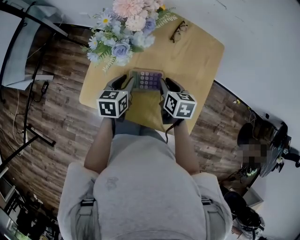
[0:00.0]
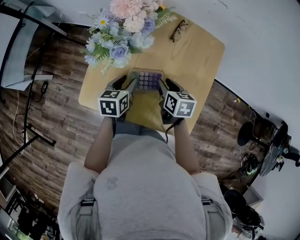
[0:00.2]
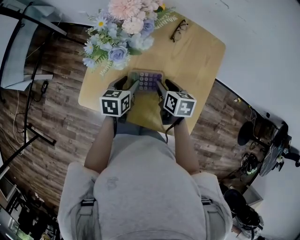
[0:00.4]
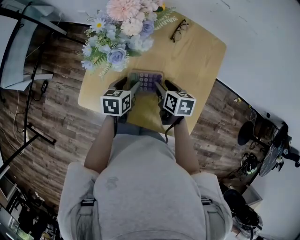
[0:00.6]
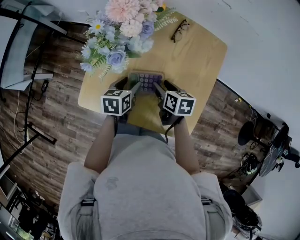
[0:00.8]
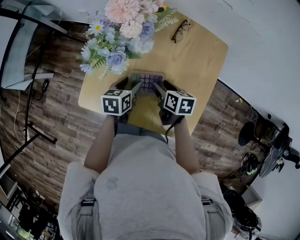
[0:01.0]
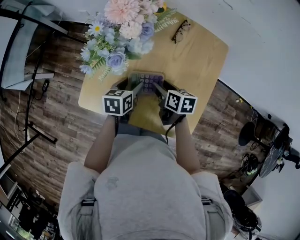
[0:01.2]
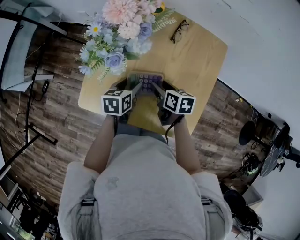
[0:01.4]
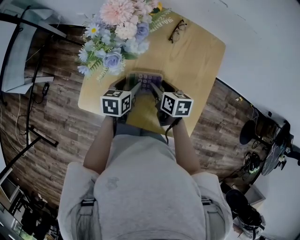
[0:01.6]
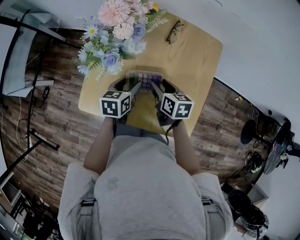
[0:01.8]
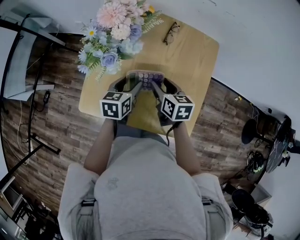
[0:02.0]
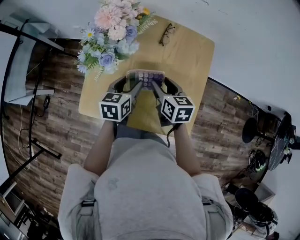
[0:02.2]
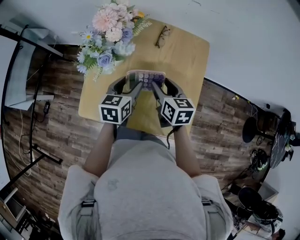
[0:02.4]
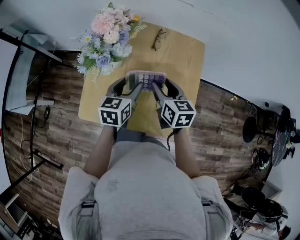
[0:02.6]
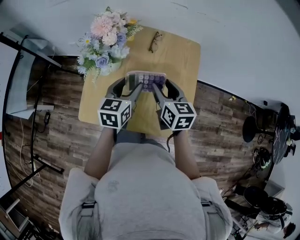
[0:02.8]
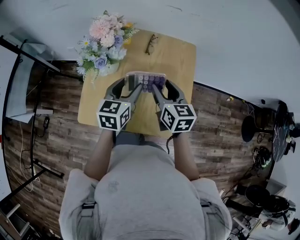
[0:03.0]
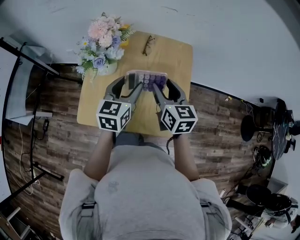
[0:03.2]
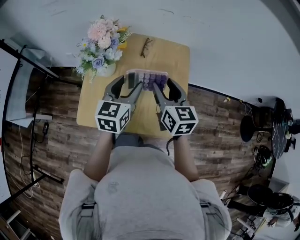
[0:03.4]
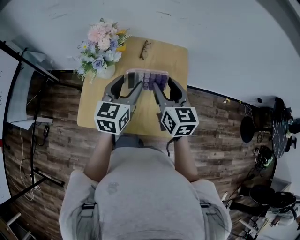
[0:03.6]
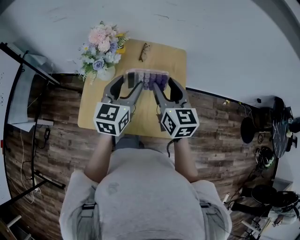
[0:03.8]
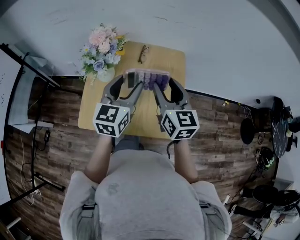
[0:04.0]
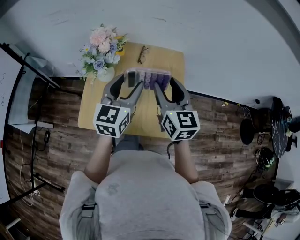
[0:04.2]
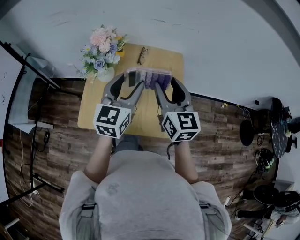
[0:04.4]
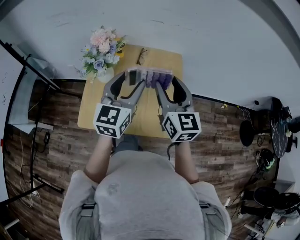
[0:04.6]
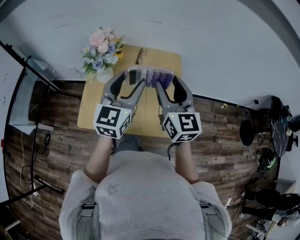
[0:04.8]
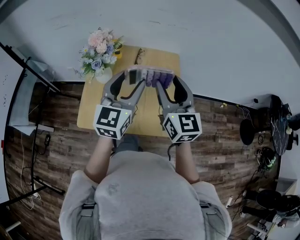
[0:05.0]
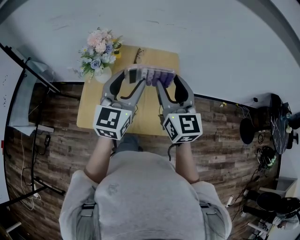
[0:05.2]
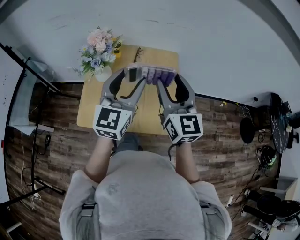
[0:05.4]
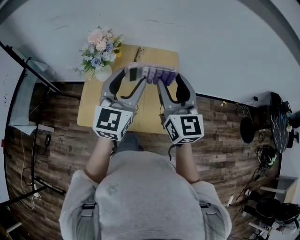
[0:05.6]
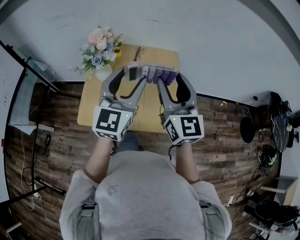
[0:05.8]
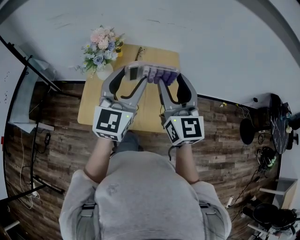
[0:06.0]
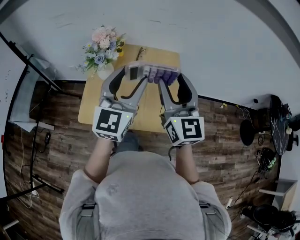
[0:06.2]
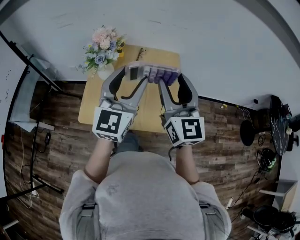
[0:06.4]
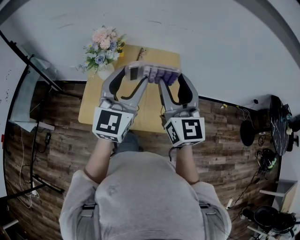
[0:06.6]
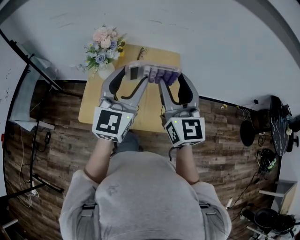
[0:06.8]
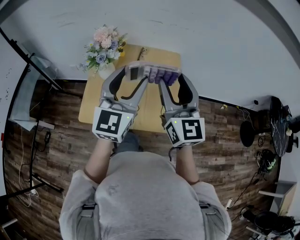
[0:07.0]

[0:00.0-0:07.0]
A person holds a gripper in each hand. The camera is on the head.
0.0 to 1.4 s: The right gripper opens its fingers. The left gripper opens.
1.4 to 2.8 s: The grippers both shift upward by some 15 cm. The left gripper changes its angle by roughly 30 degrees; the right gripper changes its angle by about 30 degrees.
2.8 to 4.2 s: The two grippers go some 15 cm upward. The left gripper turns by some 20 degrees; the right gripper changes its angle by about 20 degrees.
4.2 to 5.6 s: The right gripper moves upward and backward, approximately 10 cm, while the left gripper moves upward, some 5 cm.
5.6 to 7.0 s: The grippers stay close to where they were, moving slightly.

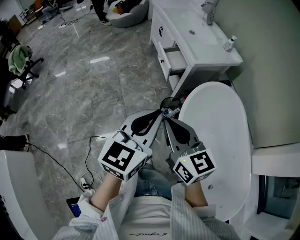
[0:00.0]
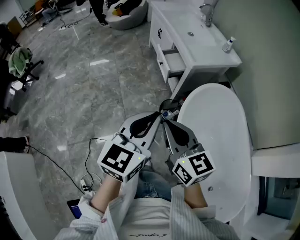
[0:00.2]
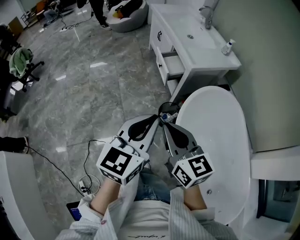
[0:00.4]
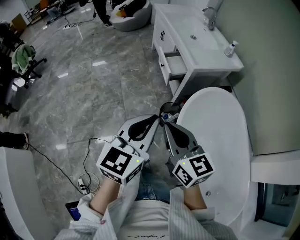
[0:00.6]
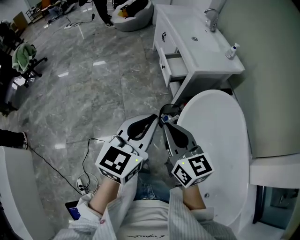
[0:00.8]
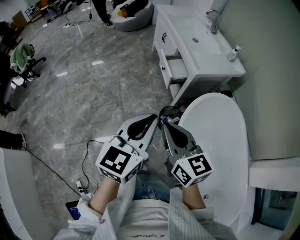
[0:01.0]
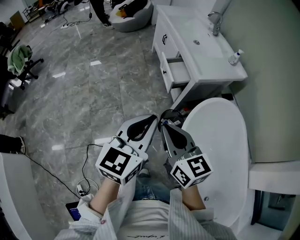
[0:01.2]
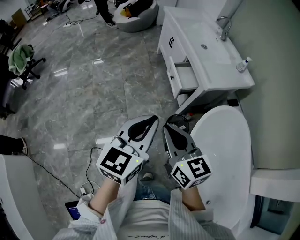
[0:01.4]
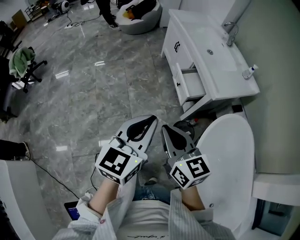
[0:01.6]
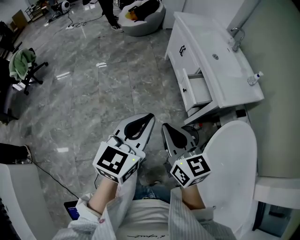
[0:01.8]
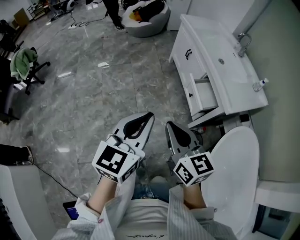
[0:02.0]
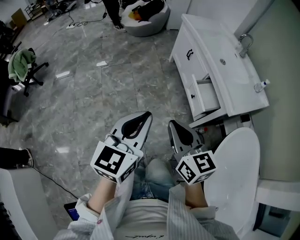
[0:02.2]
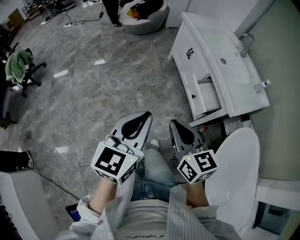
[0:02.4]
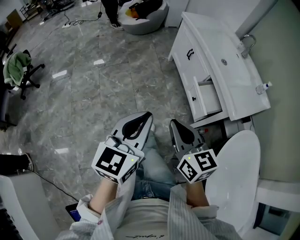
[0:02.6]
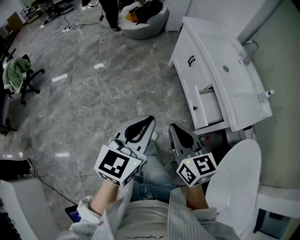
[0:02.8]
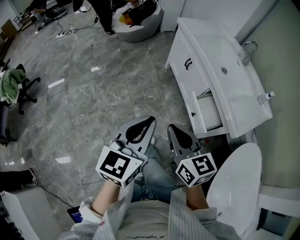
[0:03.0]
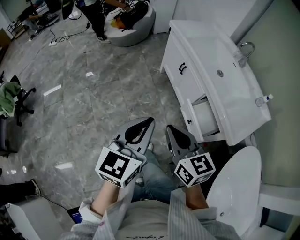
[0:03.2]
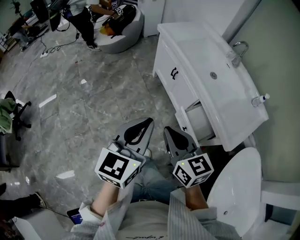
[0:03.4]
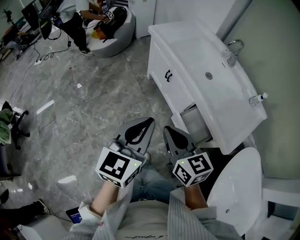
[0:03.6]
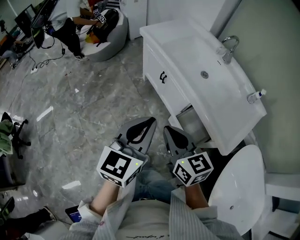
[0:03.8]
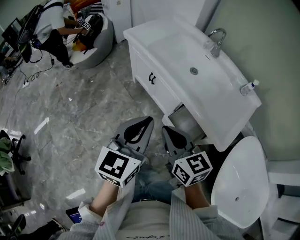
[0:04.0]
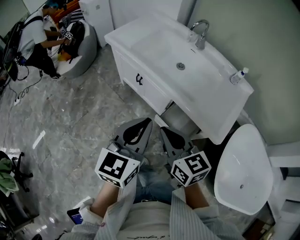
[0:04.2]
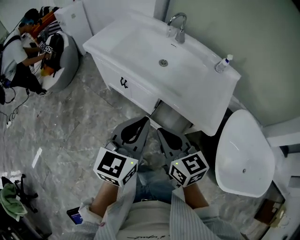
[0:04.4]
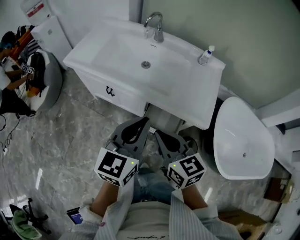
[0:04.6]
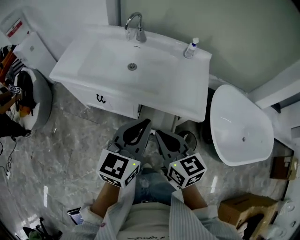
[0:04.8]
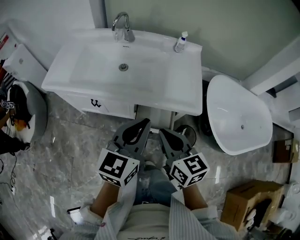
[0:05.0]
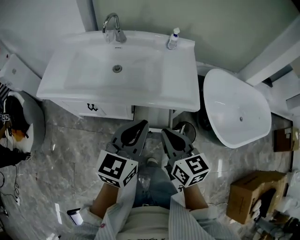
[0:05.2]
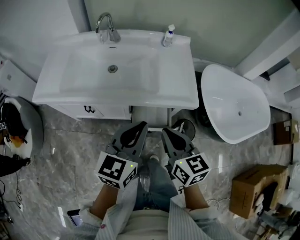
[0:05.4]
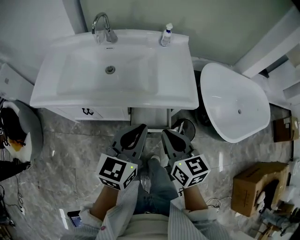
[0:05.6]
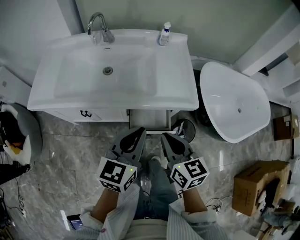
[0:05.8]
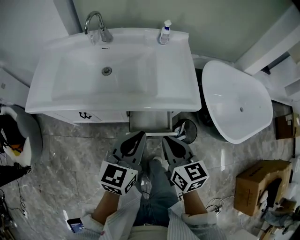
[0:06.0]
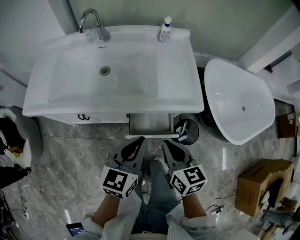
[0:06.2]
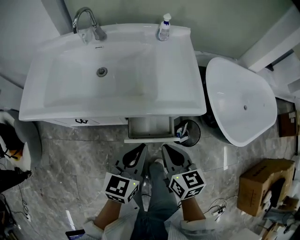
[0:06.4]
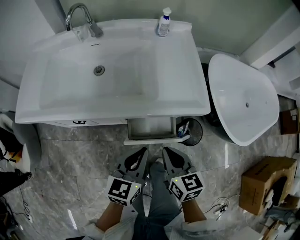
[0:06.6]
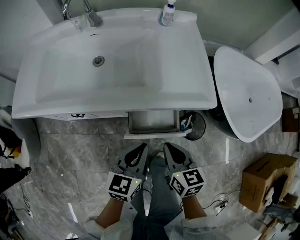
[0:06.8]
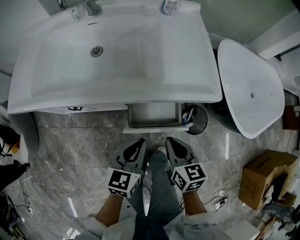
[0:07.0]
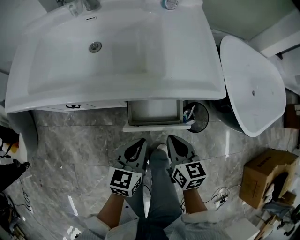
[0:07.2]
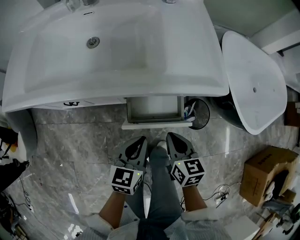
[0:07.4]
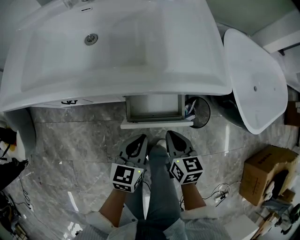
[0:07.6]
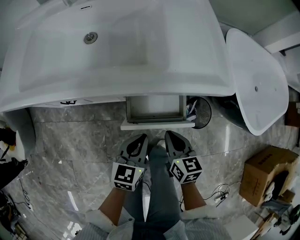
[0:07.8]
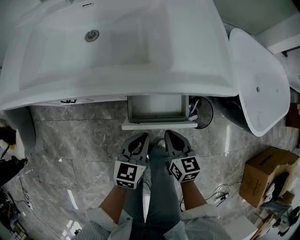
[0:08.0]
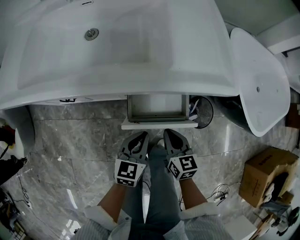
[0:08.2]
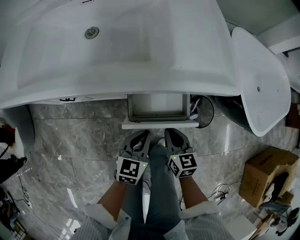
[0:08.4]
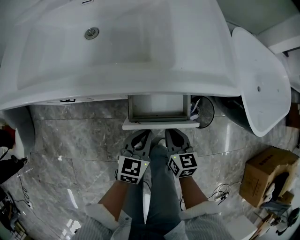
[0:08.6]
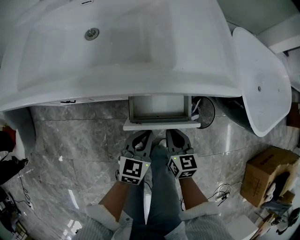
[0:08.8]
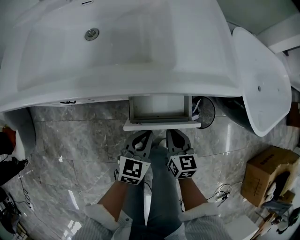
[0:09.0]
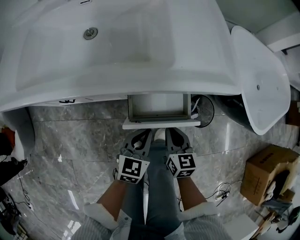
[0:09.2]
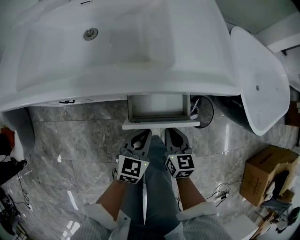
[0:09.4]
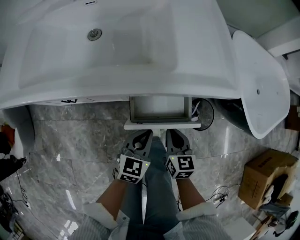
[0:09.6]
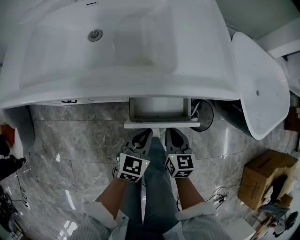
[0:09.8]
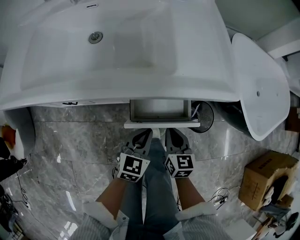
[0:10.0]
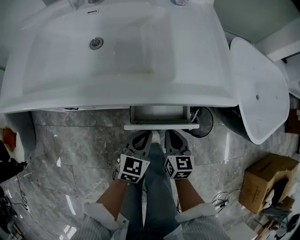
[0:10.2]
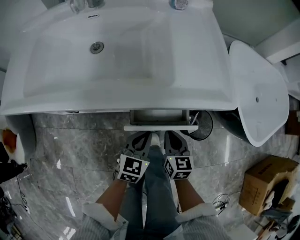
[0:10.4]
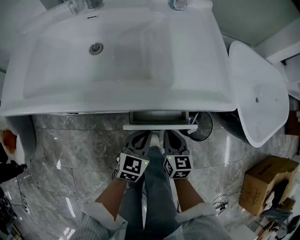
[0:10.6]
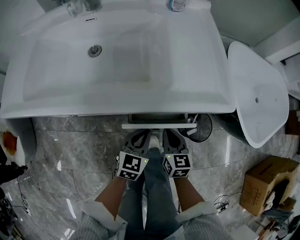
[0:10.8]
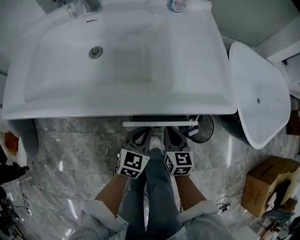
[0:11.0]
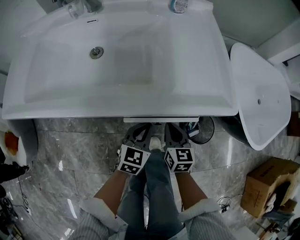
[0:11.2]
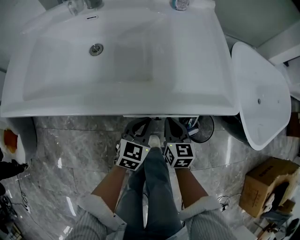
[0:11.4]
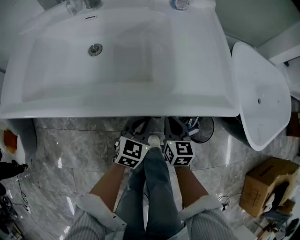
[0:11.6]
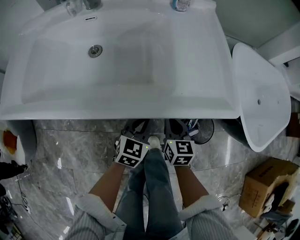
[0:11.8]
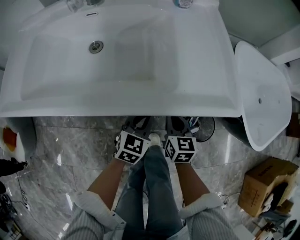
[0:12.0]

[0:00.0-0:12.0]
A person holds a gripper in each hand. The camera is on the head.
0.0 to 1.6 s: The grippers both shift forward and to the left by some 20 cm.
1.6 to 3.0 s: The left gripper goes approximately 30 cm forward and to the left, while the right gripper goes roughly 25 cm forward.
3.0 to 4.4 s: The left gripper shifts by some 30 cm, and swivels about 40 degrees. The right gripper changes place by about 25 cm, and rotates approximately 30 degrees.
4.4 to 6.0 s: The right gripper moves roughly 10 cm, and swivels about 40 degrees. The left gripper is displaced downward by approximately 10 cm, and swivels about 40 degrees.
6.0 to 7.6 s: Both grippers travel together downward, roughly 25 cm.
7.6 to 9.0 s: The two grippers go about 5 cm downward.
9.0 to 10.4 s: The grippers stay close to where they were, moving slightly.
10.4 to 12.0 s: Both grippers travel together forward, roughly 10 cm.

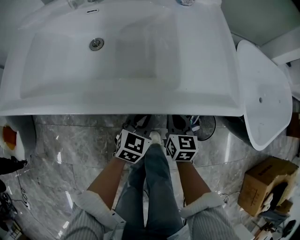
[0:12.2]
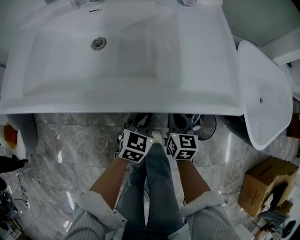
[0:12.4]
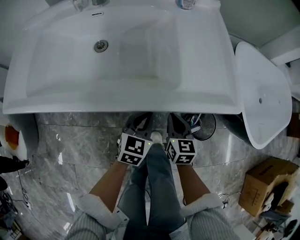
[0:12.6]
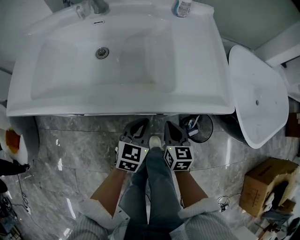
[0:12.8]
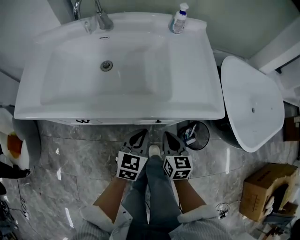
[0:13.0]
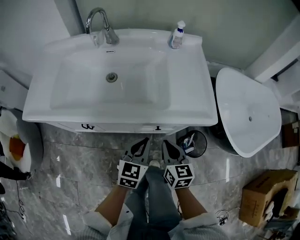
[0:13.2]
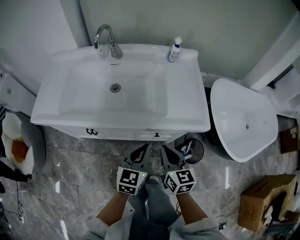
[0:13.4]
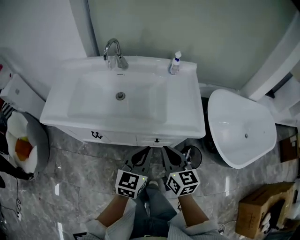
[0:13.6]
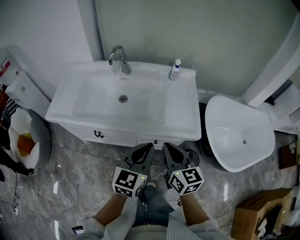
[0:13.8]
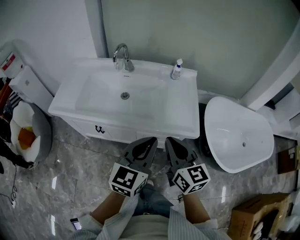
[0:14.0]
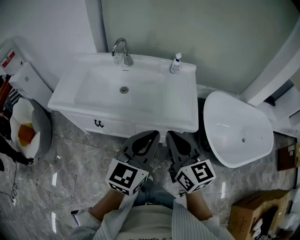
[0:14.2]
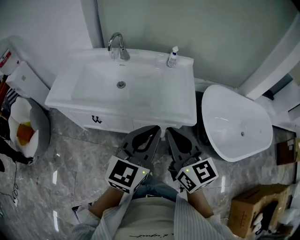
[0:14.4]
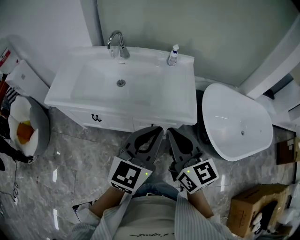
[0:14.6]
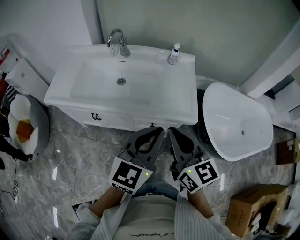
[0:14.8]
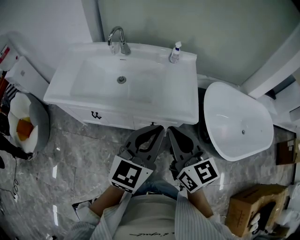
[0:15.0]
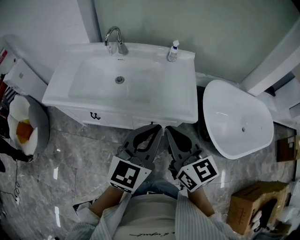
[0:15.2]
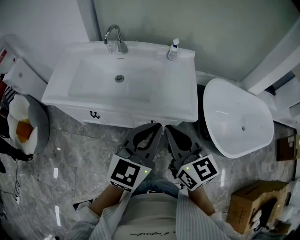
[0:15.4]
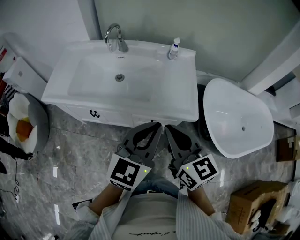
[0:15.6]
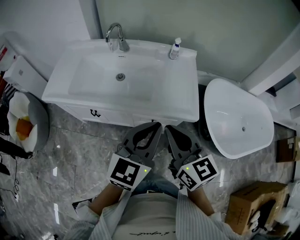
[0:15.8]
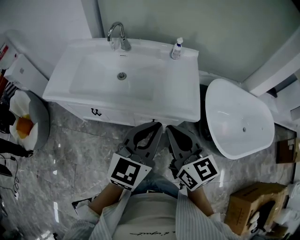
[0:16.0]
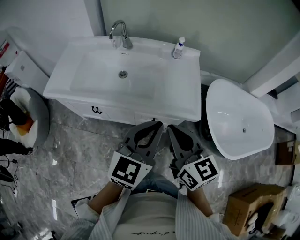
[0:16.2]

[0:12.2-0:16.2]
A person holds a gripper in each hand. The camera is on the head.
12.2 to 13.6 s: The grippers both shift upward by approximately 25 cm. The left gripper changes its angle by approximately 20 degrees.
13.6 to 14.8 s: Both grippers move upward, some 15 cm.
14.8 to 16.2 s: The grippers move only a little.

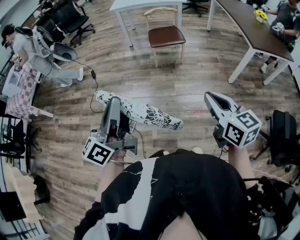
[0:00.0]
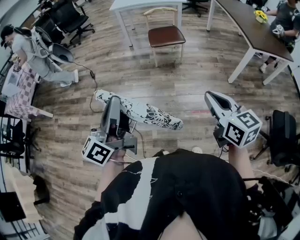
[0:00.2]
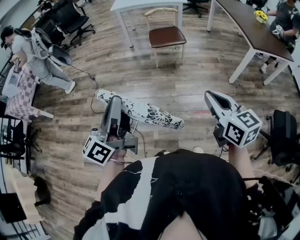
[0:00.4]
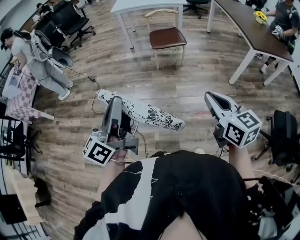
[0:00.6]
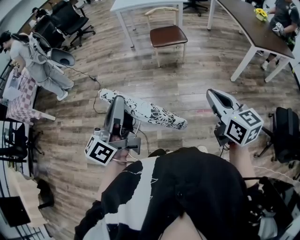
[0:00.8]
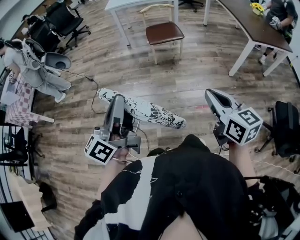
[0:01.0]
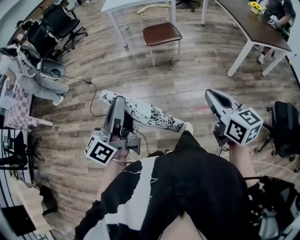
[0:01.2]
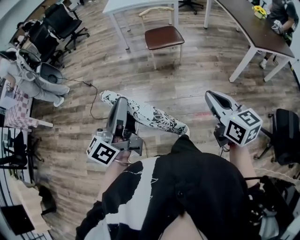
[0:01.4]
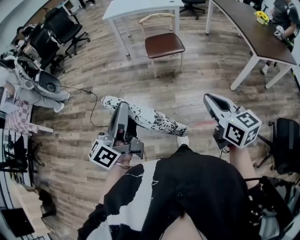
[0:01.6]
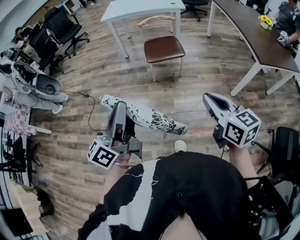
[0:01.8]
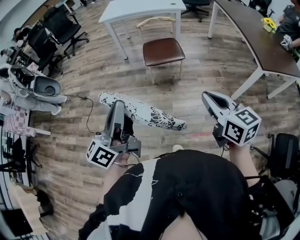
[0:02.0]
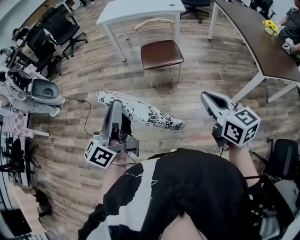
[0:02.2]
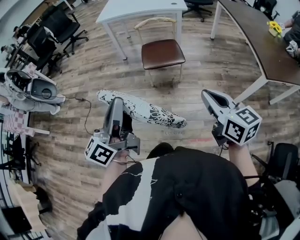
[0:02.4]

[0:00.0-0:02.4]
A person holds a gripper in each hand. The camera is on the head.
0.0 to 1.2 s: The left gripper moves roughly 5 cm.
1.2 to 2.4 s: The grippers both shift forward and to the right by some 35 cm.
